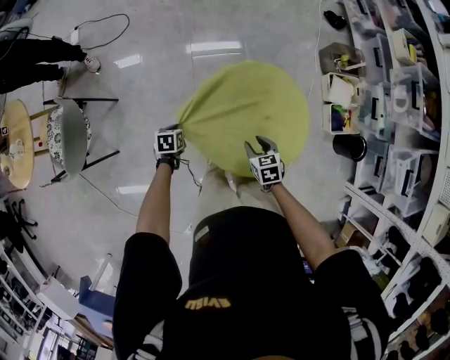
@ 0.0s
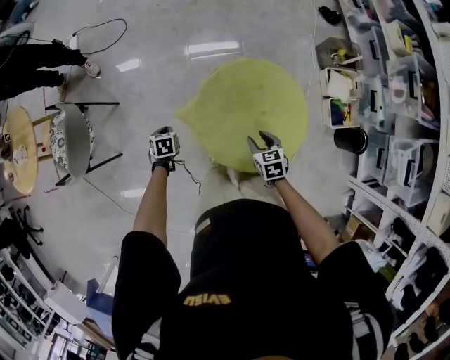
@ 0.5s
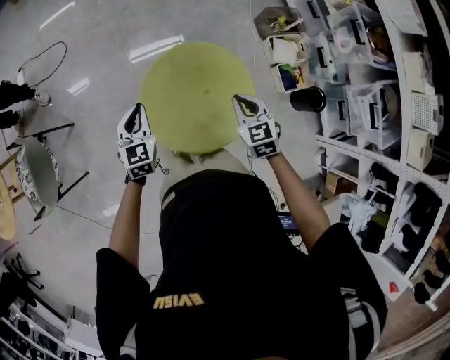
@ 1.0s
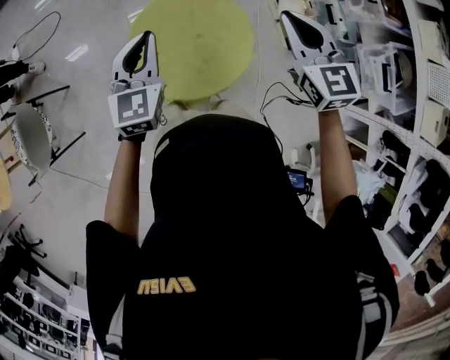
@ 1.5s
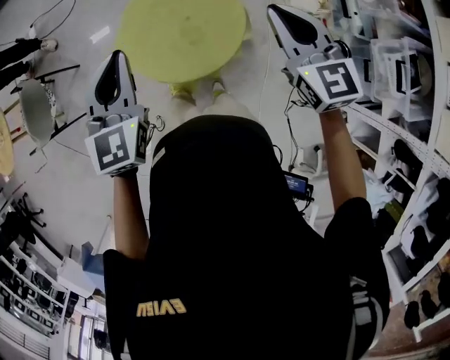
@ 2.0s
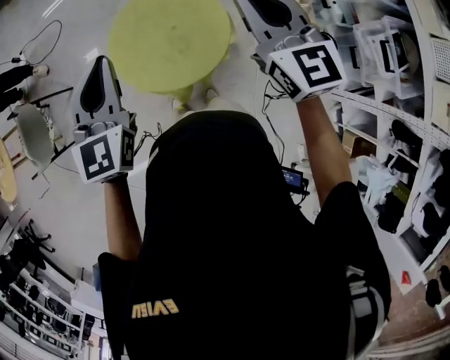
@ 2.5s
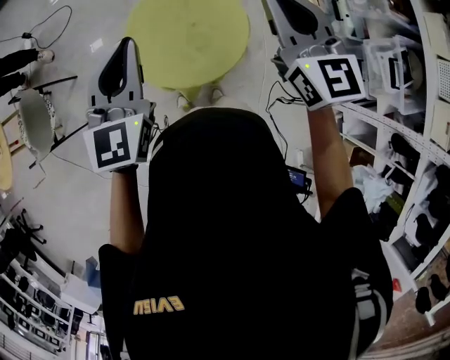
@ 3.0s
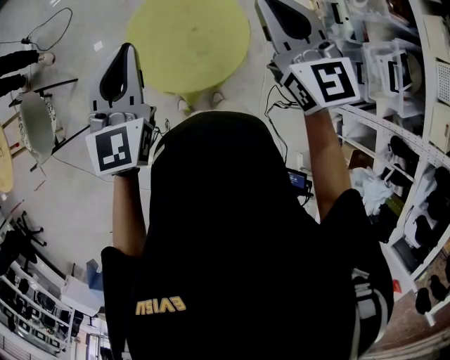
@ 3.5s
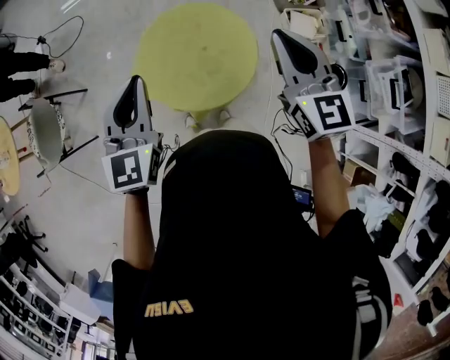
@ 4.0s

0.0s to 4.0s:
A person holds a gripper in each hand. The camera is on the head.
0.0s to 2.0s: The two grippers go about 50 cm upward and to the right. The left gripper angles its fingers upward, by roughly 50 degrees. The right gripper tilts its fingers about 40 degrees upward, and closes its fingers.
2.0s to 4.0s: Both grippers move to the left, about 5 cm.

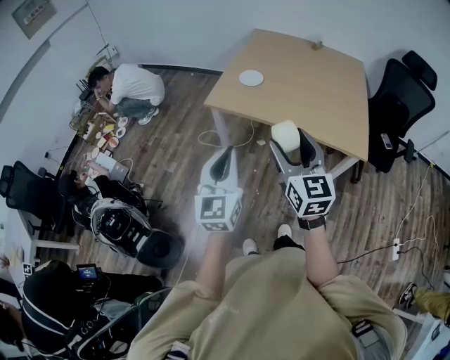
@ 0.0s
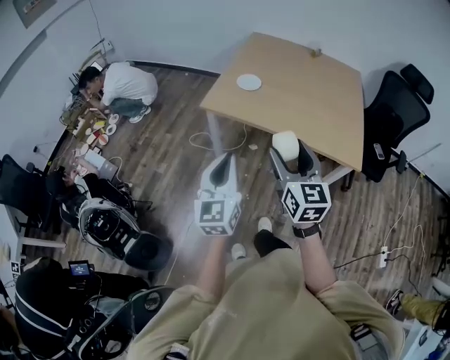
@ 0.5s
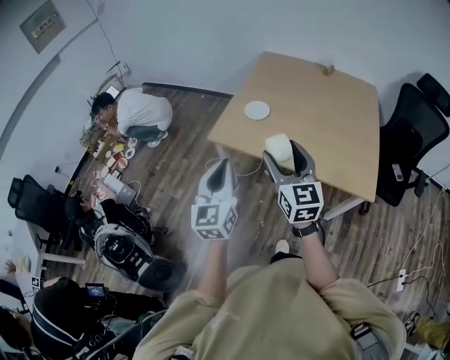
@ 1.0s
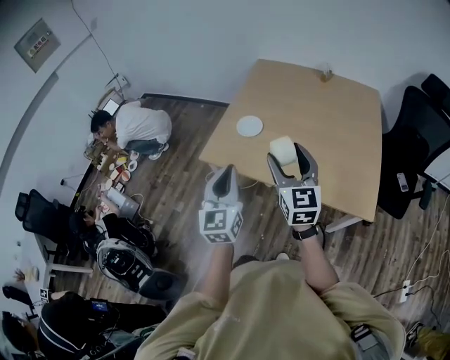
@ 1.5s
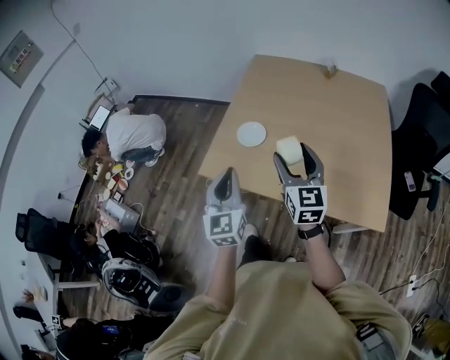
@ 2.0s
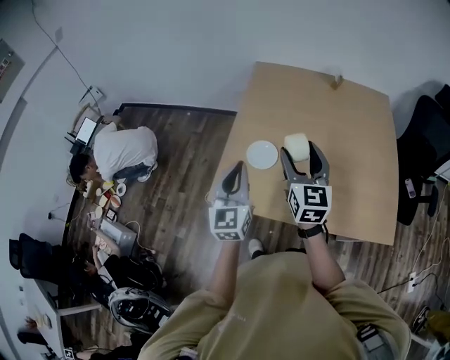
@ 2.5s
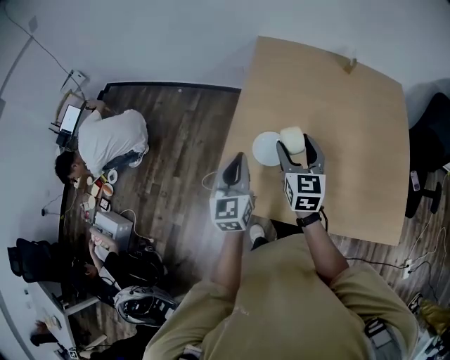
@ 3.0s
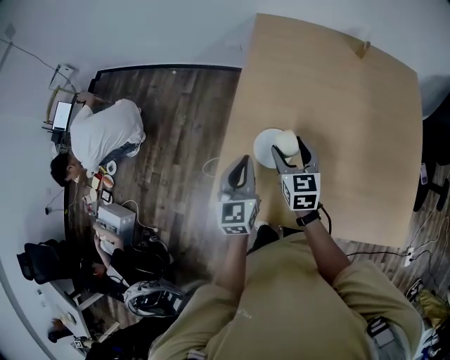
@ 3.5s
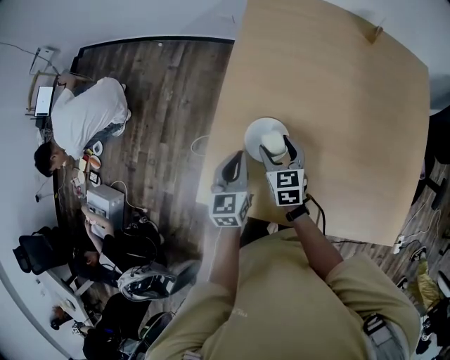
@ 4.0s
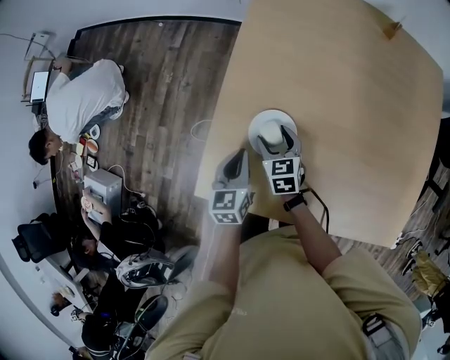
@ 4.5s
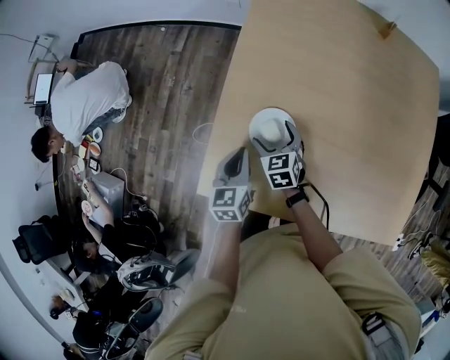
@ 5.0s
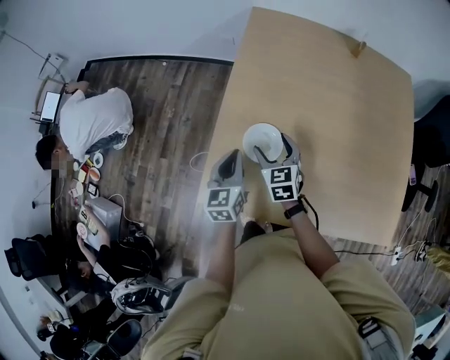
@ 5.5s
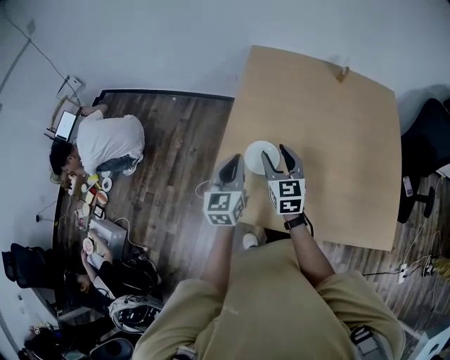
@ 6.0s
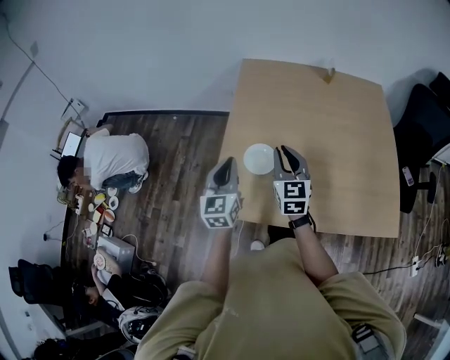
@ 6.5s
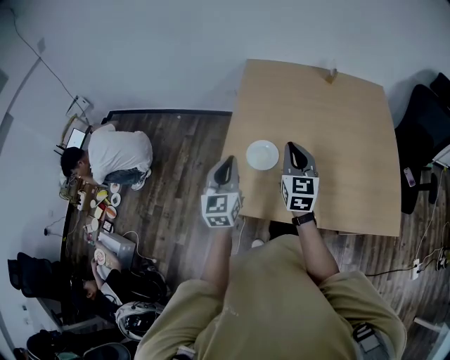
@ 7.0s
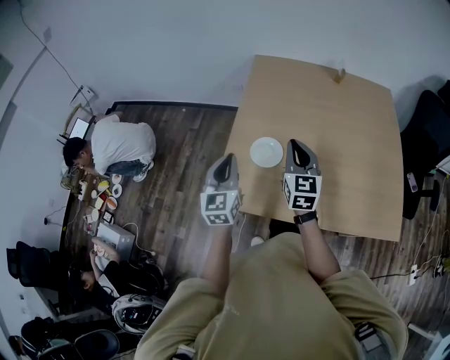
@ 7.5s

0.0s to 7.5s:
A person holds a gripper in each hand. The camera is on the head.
0.0s to 2.0s: Both grippers travel together forward, about 40 cm.
2.0s to 4.0s: The left gripper heads forward and downward, covering about 40 cm, and changes its angle by approximately 30 degrees. Meanwhile the right gripper moves forward, downward and to the left, roughly 50 cm, and tips its fingers downward by some 30 degrees.
4.0s to 5.5s: Both grippers move upward, about 5 cm.
5.5s to 7.5s: Both grippers travel together upward and backward, about 20 cm. The left gripper turns by some 20 degrees. The right gripper changes its angle by approximately 30 degrees, and closes.

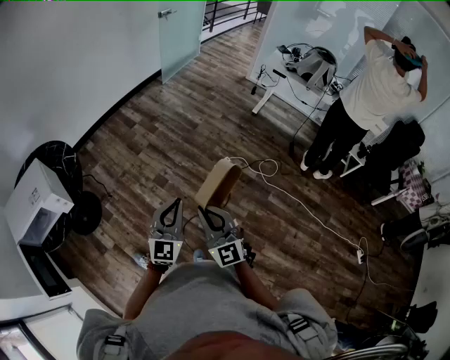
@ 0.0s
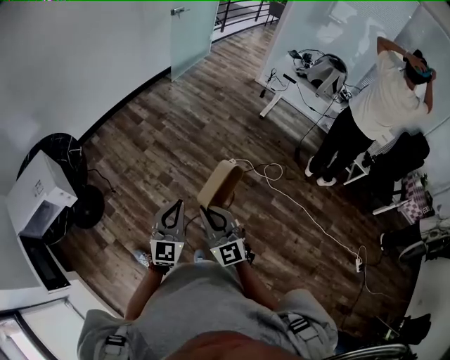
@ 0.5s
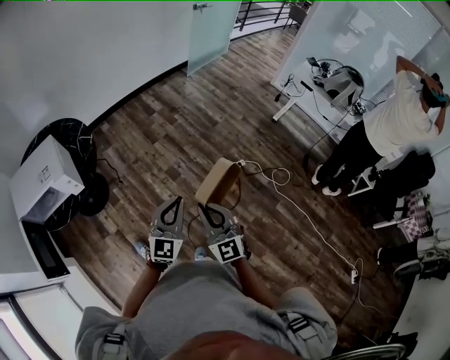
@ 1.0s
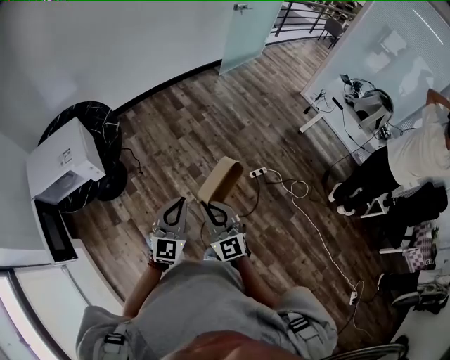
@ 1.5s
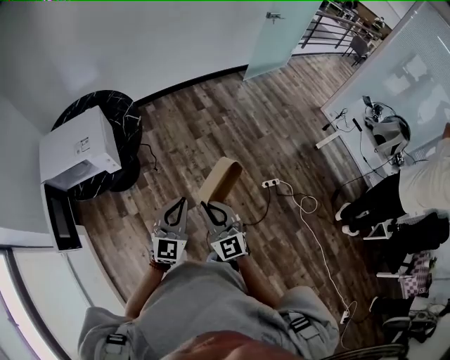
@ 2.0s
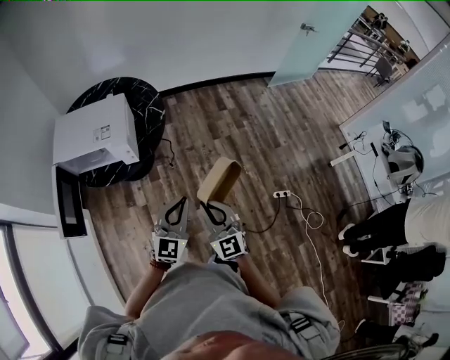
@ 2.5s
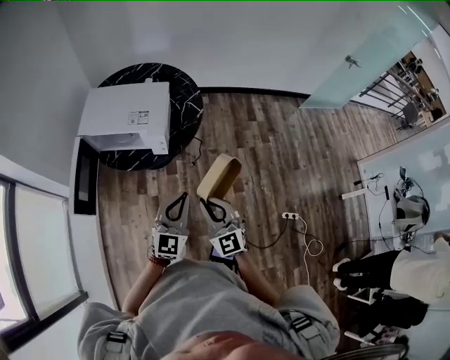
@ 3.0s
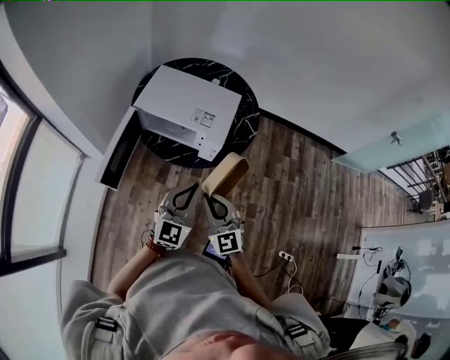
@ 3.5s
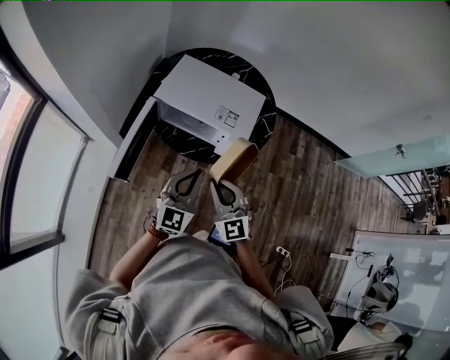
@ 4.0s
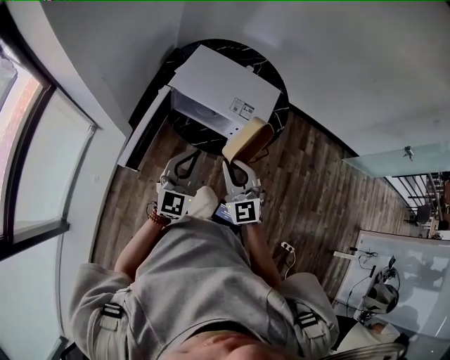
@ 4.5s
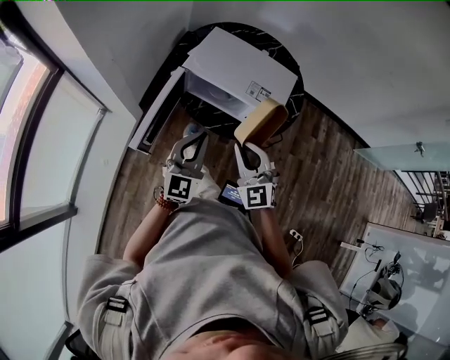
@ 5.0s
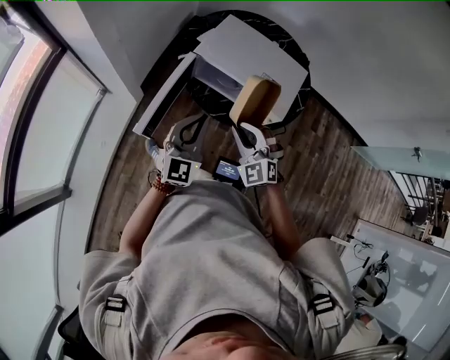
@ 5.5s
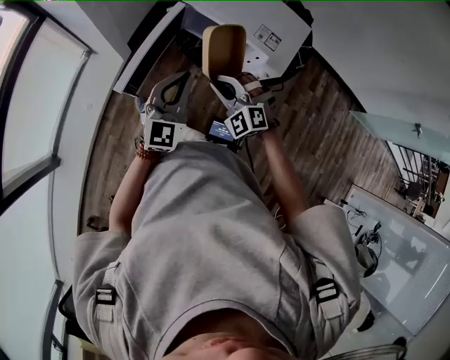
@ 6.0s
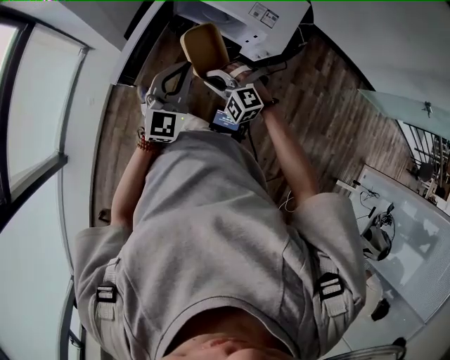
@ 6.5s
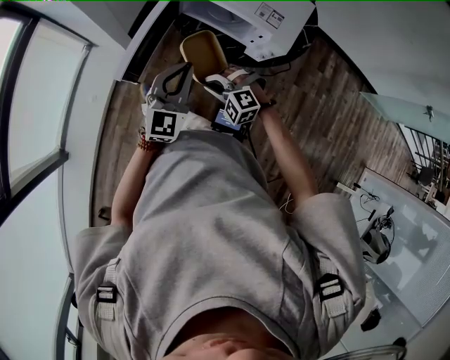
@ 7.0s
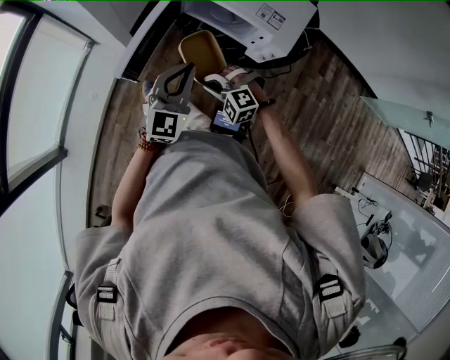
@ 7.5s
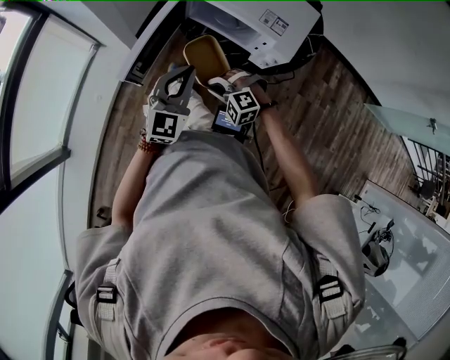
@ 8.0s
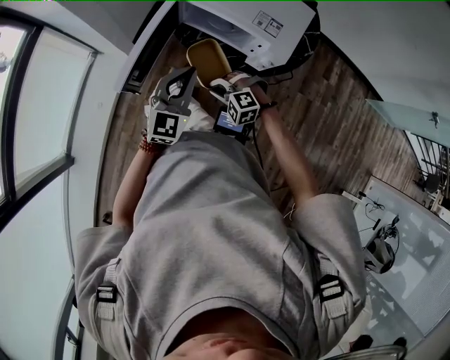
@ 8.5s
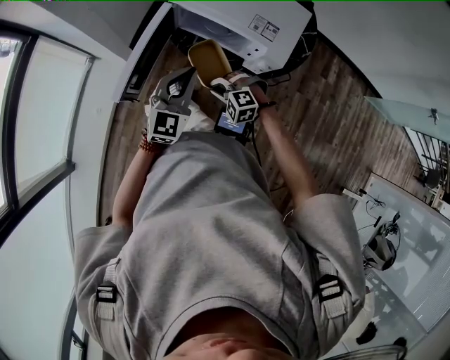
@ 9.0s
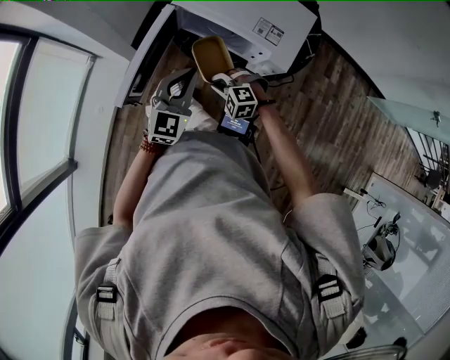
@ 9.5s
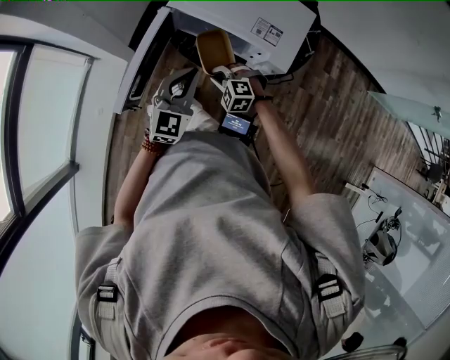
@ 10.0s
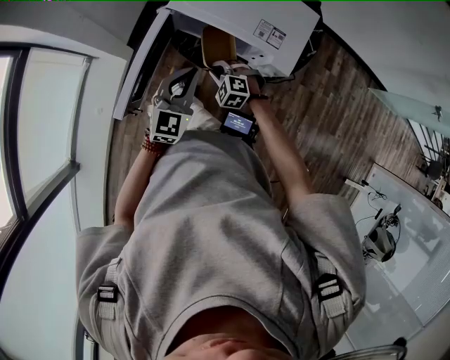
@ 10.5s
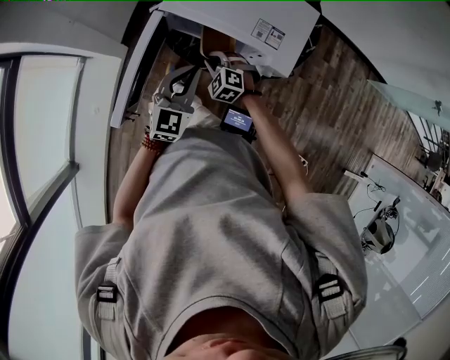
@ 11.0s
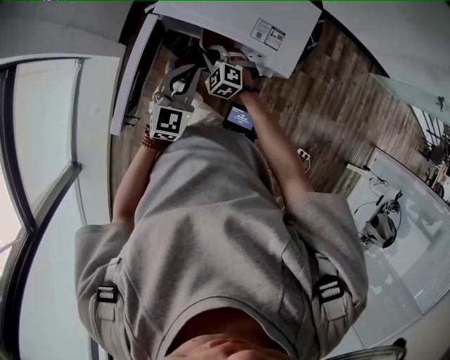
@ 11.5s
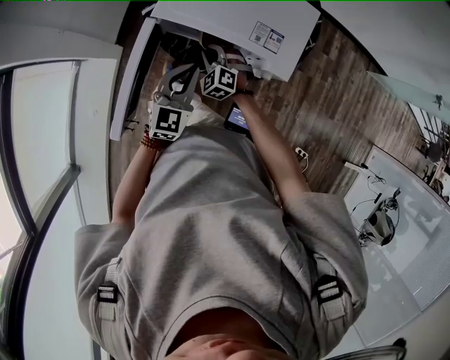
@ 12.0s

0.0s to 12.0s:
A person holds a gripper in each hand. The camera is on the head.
0.0s to 2.0s: The right gripper is displaced to the left and forward by about 25 cm, and changes its angle by approximately 30 degrees. The left gripper moves to the left, about 25 cm, and turns by some 20 degrees.
2.0s to 4.0s: Both grippers are carried approximately 40 cm. The right gripper turns by about 40 degrees. Meanwhile the left gripper swivels some 40 degrees.
4.0s to 6.0s: The right gripper travels downward, to the left and forward by roughly 15 cm, and twists some 40 degrees counterclockwise, seen from behind; the left gripper shifts roughly 10 cm to the left.
6.0s to 8.0s: The right gripper is displaced downward and backward by roughly 15 cm, and swivels approximately 30 degrees.
8.0s to 10.0s: The right gripper travels forward and to the right by some 10 cm. Meanwhile the left gripper goes about 5 cm forward.
10.0s to 12.0s: The right gripper travels forward by roughly 15 cm, and rotates roughly 30 degrees. The left gripper goes about 5 cm forward.

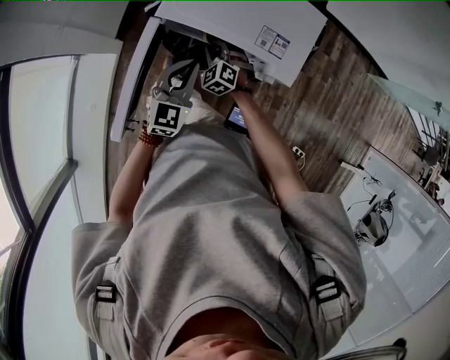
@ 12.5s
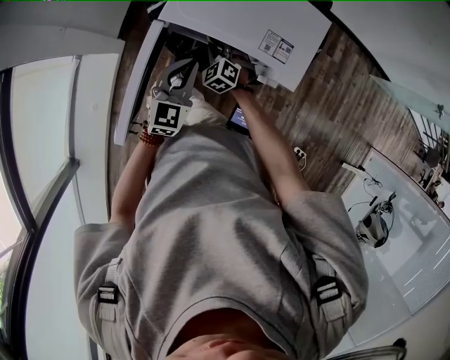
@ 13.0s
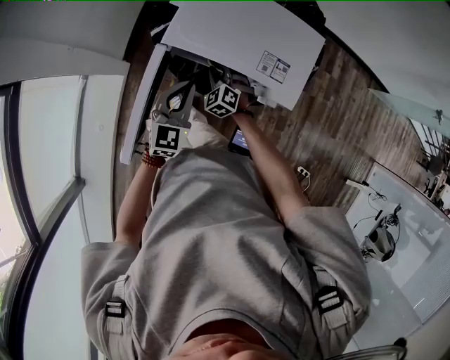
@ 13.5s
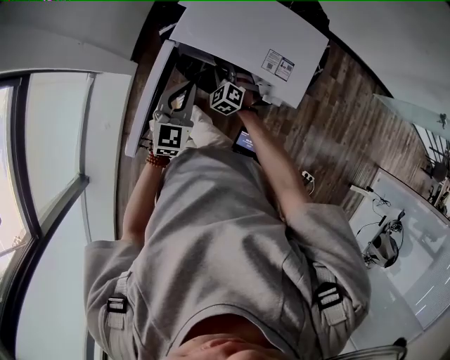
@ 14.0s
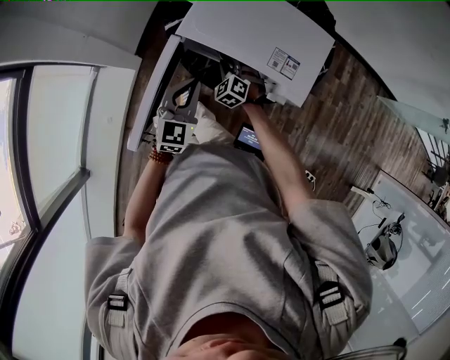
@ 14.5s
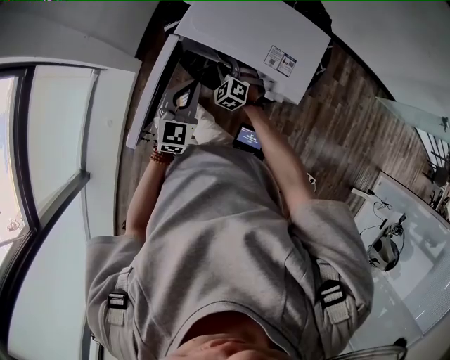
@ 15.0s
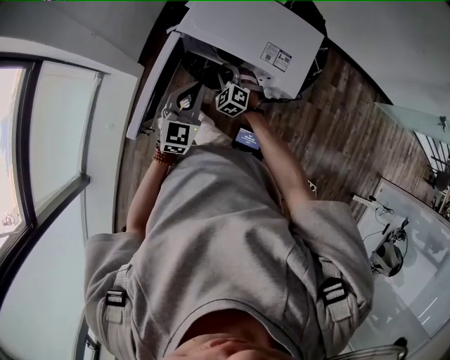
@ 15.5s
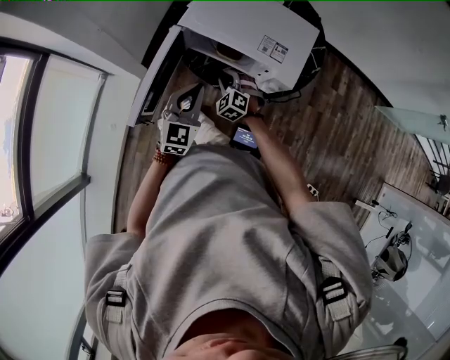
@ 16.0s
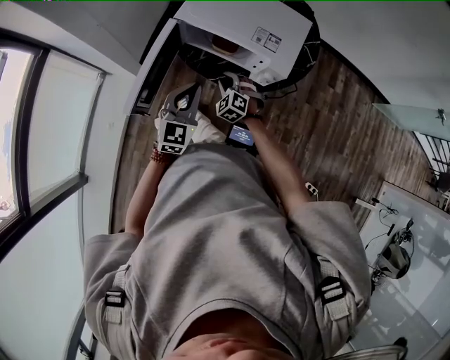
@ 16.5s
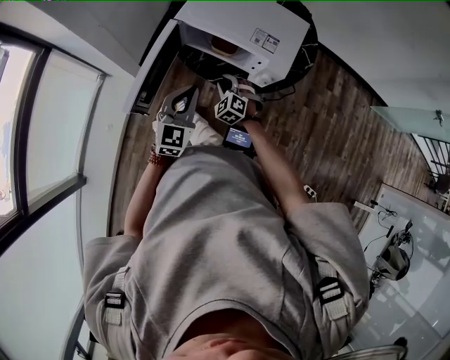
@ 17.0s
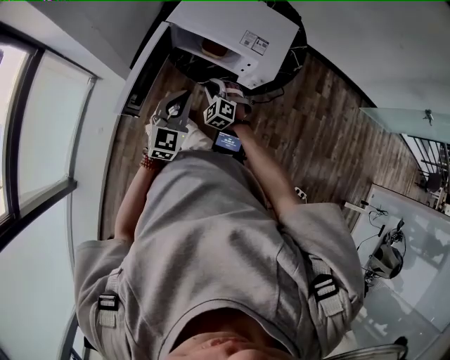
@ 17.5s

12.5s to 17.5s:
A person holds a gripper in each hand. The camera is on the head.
12.5s to 15.0s: The grippers make only small movements.
15.0s to 17.5s: The two grippers go about 15 cm backward.
